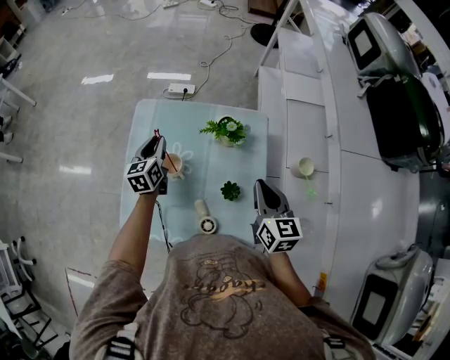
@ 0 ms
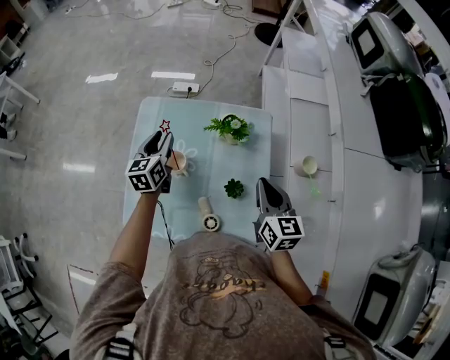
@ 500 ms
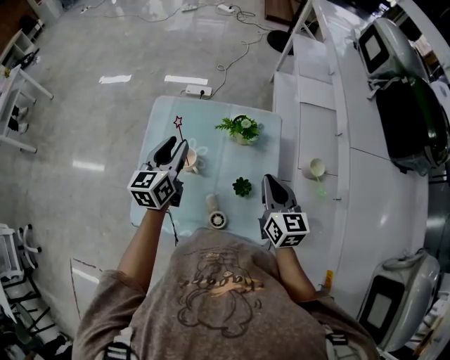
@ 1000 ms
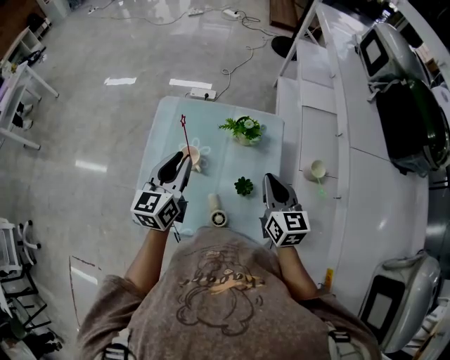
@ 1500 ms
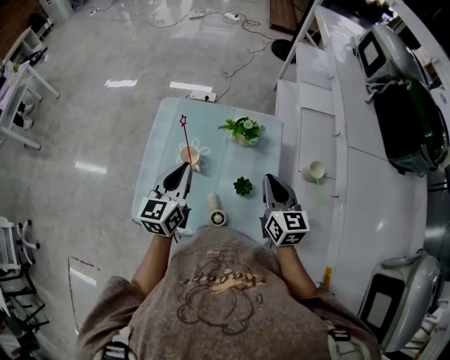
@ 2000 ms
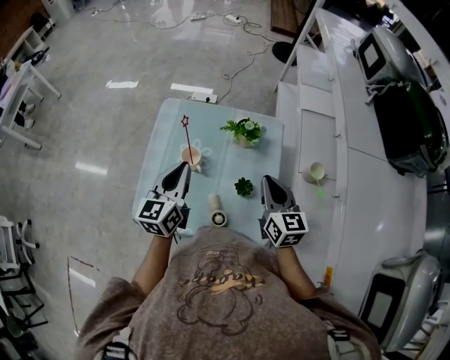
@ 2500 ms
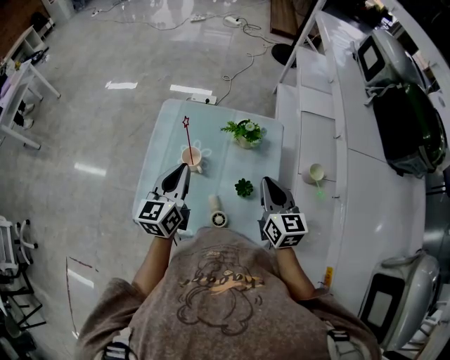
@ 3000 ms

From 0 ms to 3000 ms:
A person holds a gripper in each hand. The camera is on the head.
From 0 ms to 1500 ms: The left gripper travels backward and upward by roughly 20 cm.
From 1500 ms to 3000 ms: The left gripper closes its fingers.

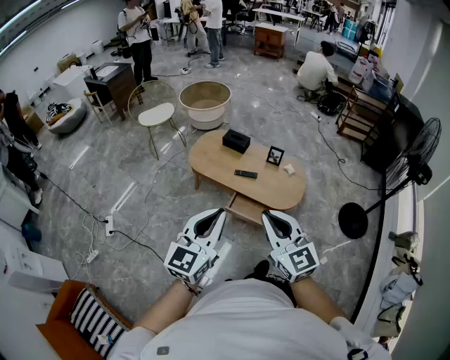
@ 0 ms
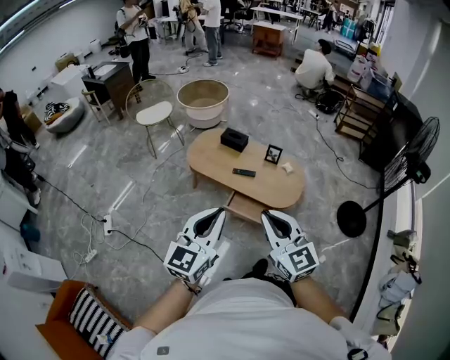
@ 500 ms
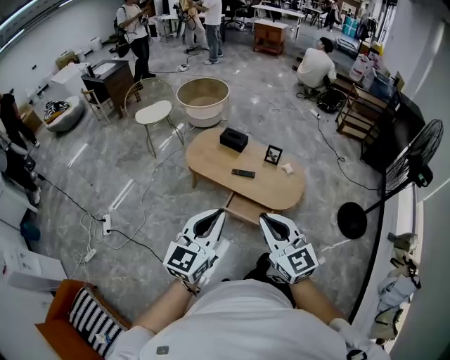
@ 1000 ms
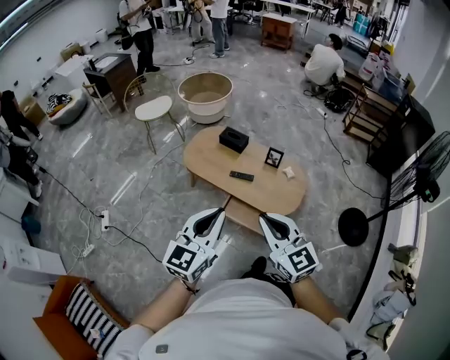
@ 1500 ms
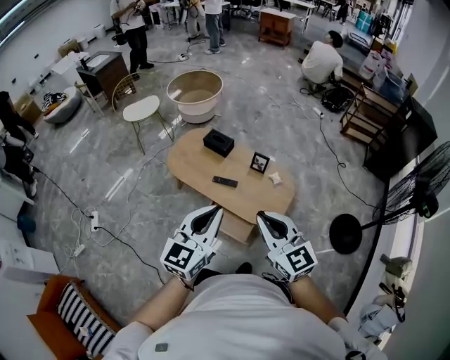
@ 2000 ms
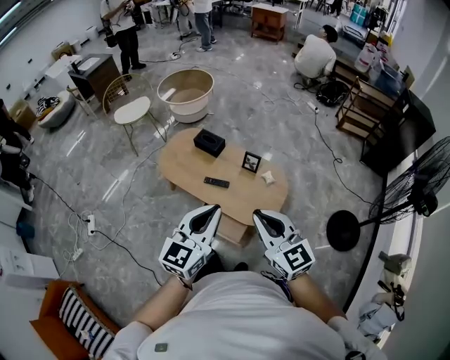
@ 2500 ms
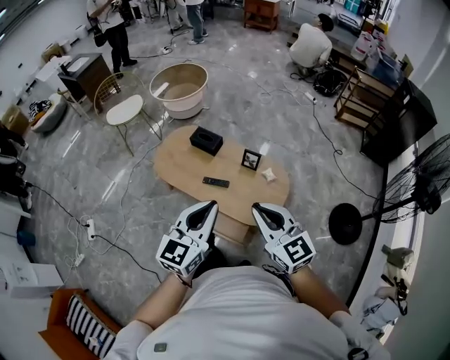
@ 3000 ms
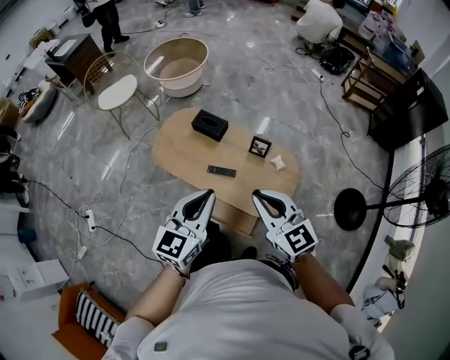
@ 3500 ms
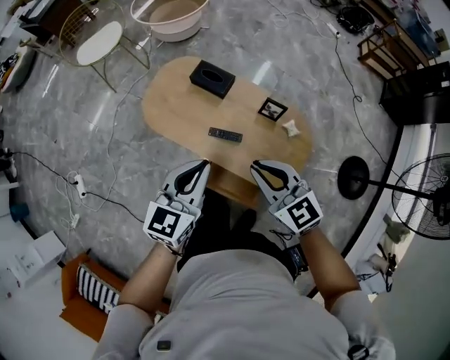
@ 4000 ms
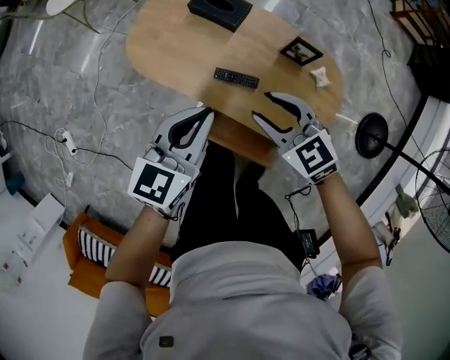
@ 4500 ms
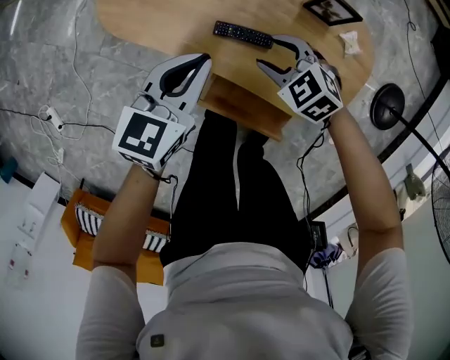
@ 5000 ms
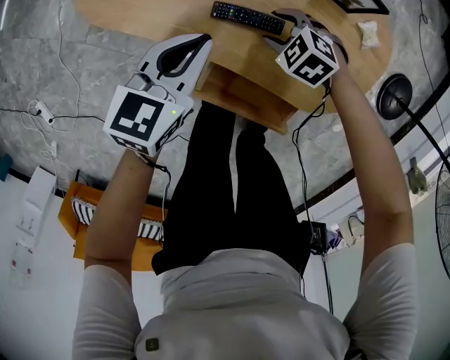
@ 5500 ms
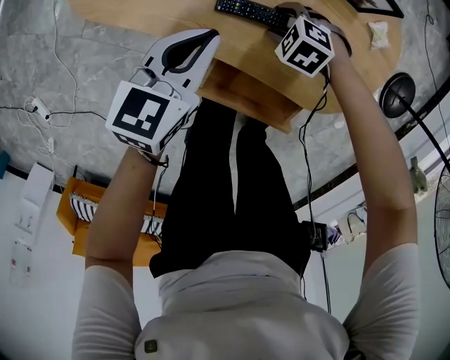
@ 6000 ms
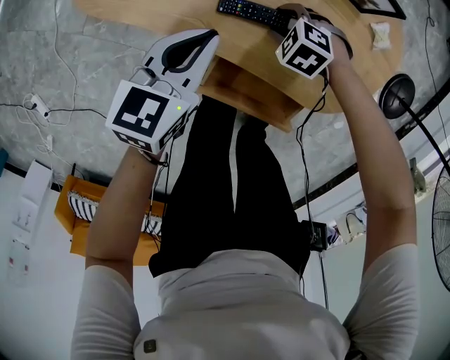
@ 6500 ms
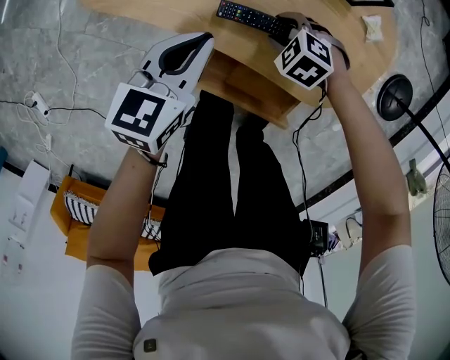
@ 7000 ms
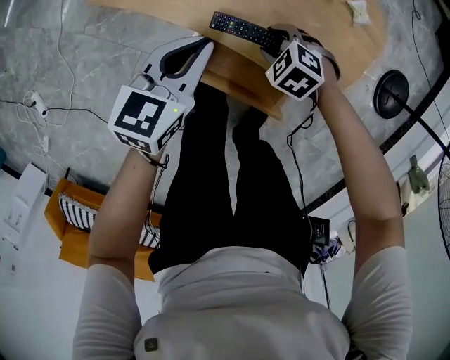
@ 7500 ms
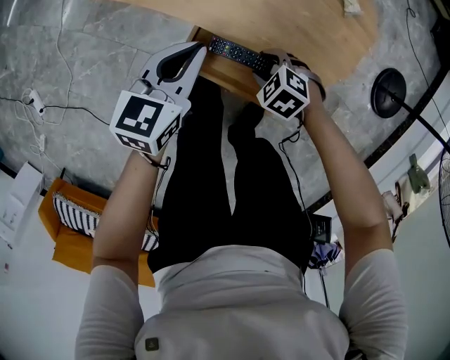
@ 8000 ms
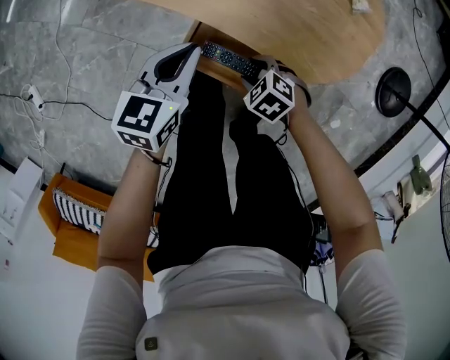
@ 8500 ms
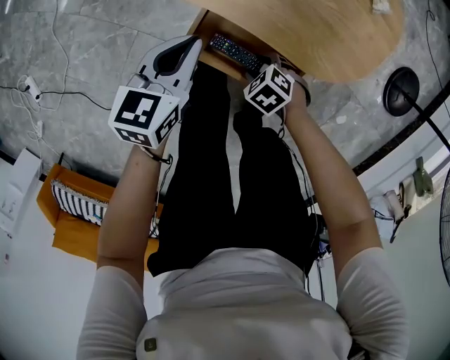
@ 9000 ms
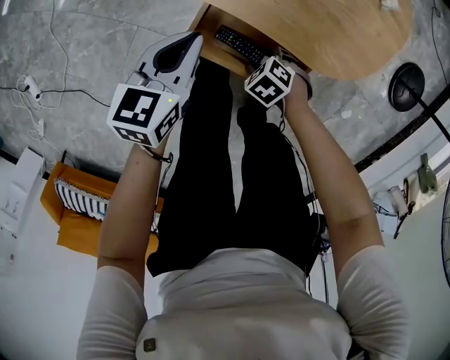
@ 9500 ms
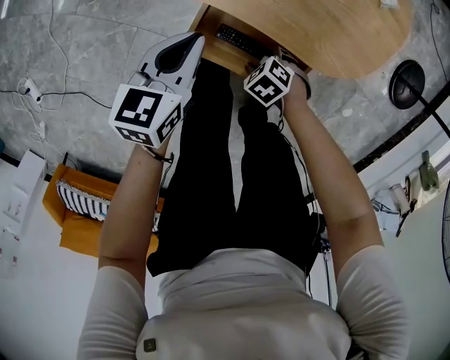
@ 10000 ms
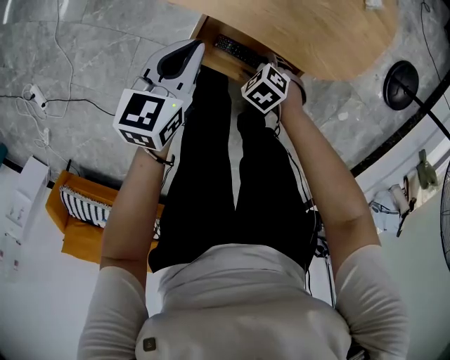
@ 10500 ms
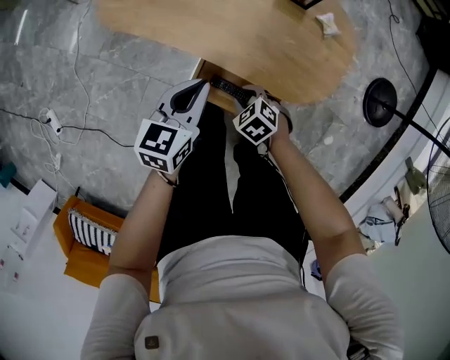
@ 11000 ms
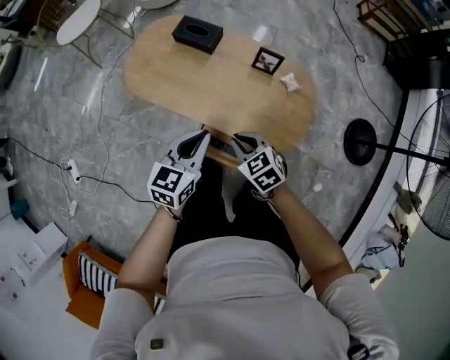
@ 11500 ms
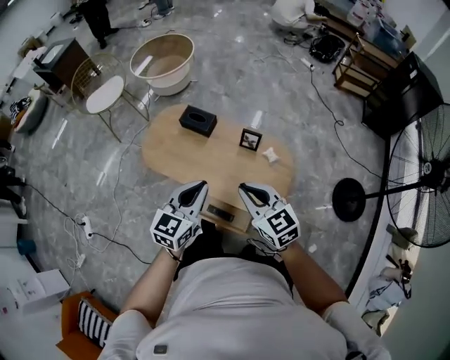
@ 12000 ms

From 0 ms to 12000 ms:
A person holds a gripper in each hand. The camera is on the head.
From 0 ms to 2000 ms: The grippers both shift forward and to the right by roughly 25 cm.
From 2000 ms to 4000 ms: The two grippers go approximately 35 cm forward and downward. The right gripper changes its angle by about 20 degrees.
From 4000 ms to 6000 ms: The two grippers go about 50 cm downward. The left gripper rotates roughly 20 degrees; the right gripper angles its fingers downward, by roughly 50 degrees, and opens its fingers.
From 6000 ms to 8000 ms: The left gripper shifts by some 15 cm. The right gripper shifts by approximately 20 cm.
From 8000 ms to 10000 ms: The grippers both shift downward by about 10 cm.
From 10000 ms to 12000 ms: The two grippers go roughly 60 cm upward. The right gripper angles its fingers upward, by approximately 60 degrees, and closes its fingers; the left gripper changes its angle by approximately 30 degrees.

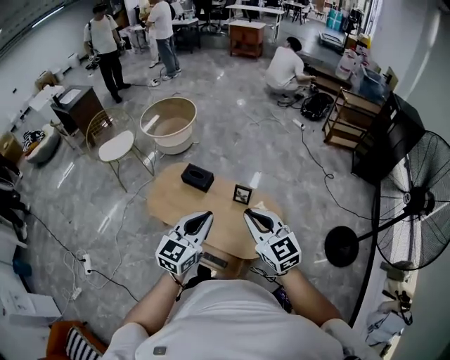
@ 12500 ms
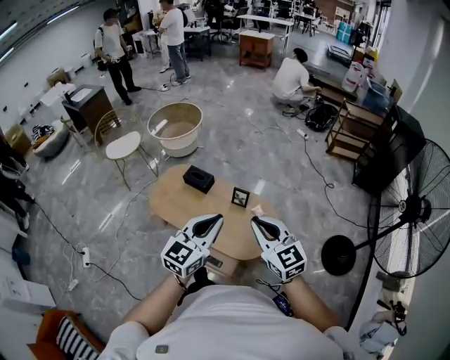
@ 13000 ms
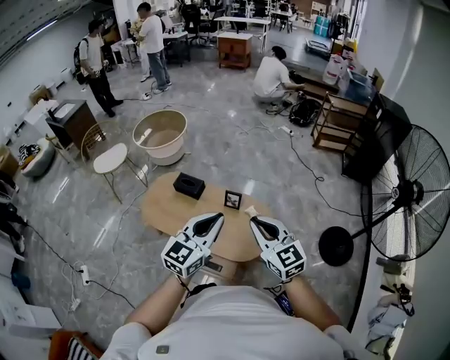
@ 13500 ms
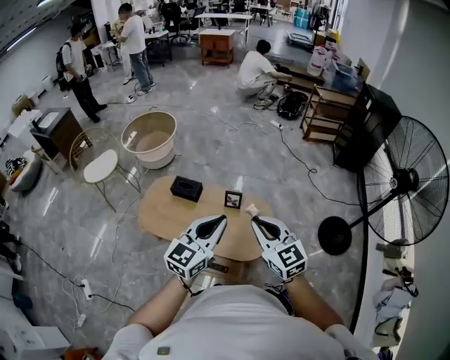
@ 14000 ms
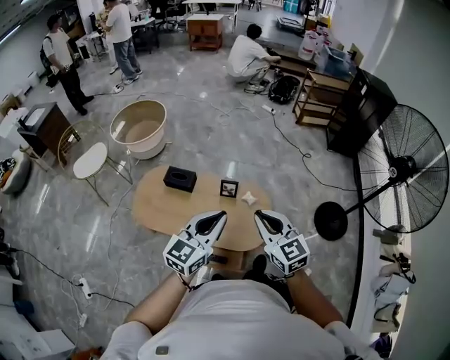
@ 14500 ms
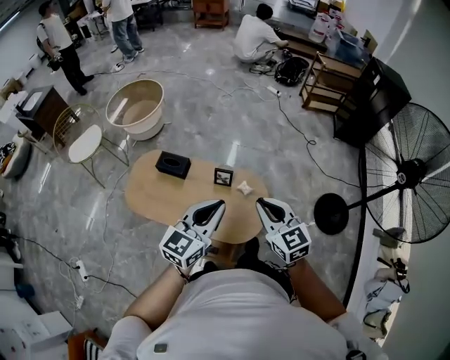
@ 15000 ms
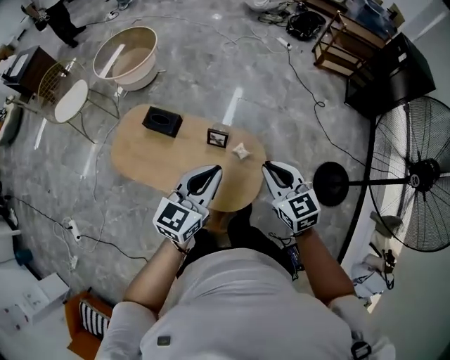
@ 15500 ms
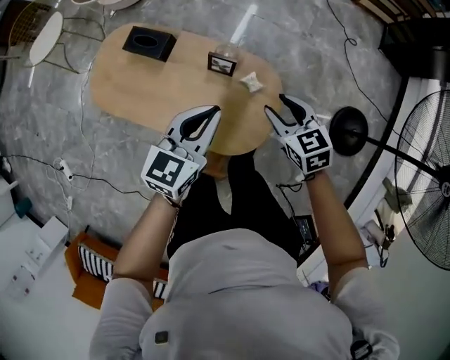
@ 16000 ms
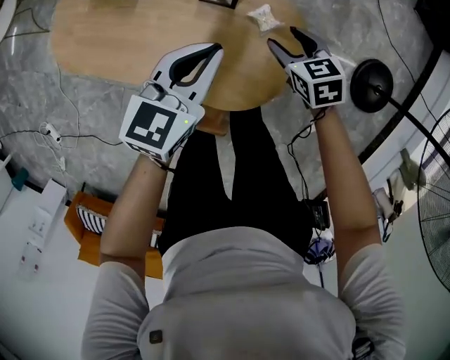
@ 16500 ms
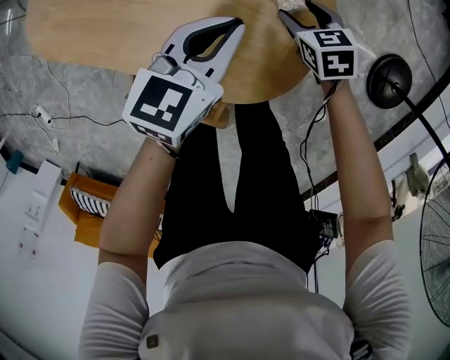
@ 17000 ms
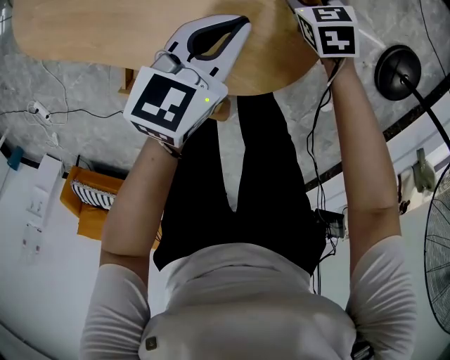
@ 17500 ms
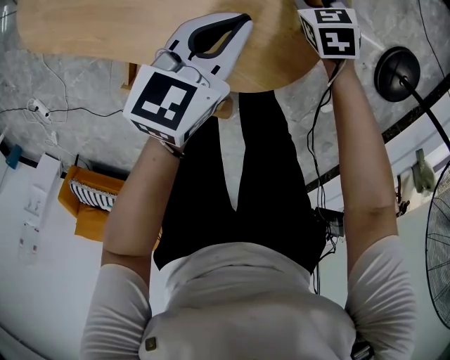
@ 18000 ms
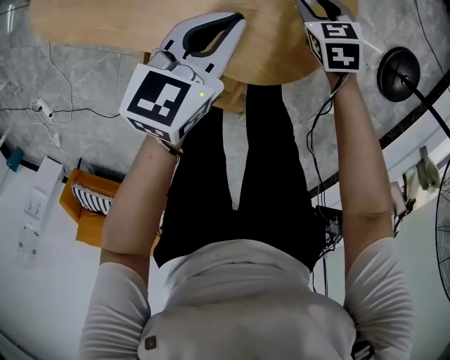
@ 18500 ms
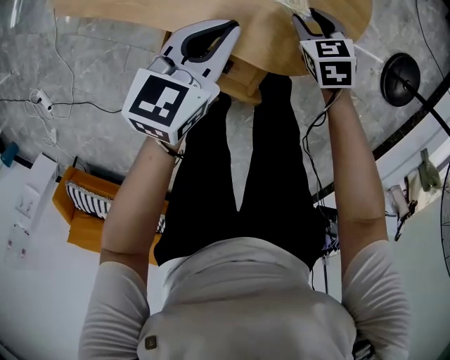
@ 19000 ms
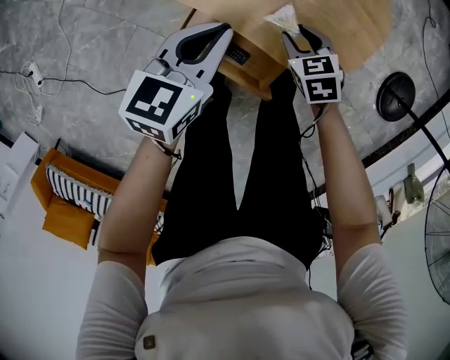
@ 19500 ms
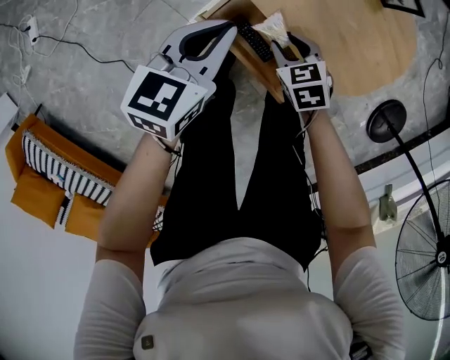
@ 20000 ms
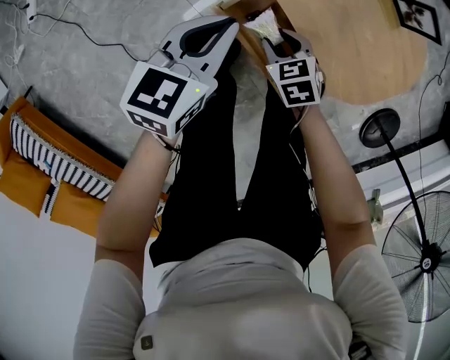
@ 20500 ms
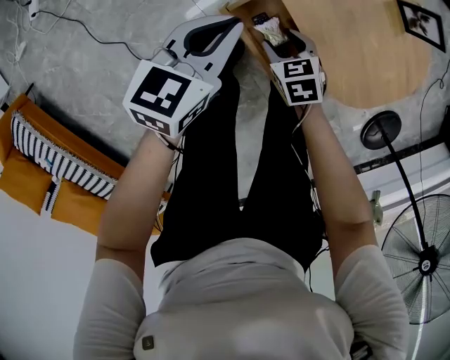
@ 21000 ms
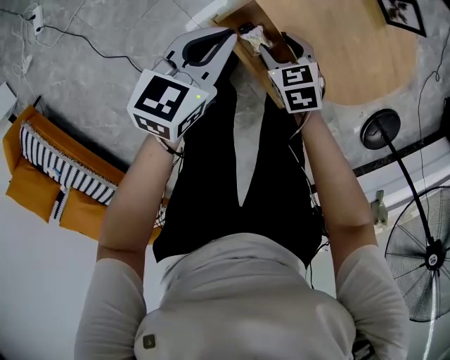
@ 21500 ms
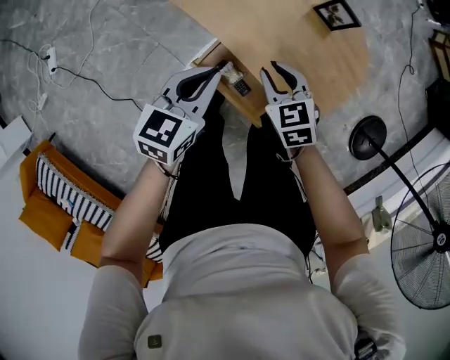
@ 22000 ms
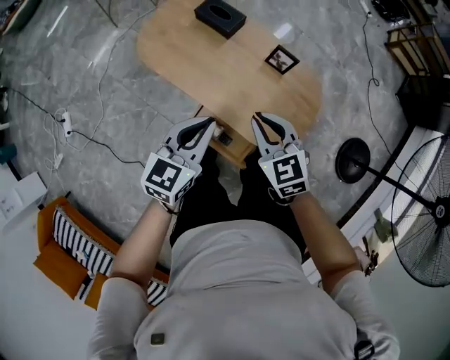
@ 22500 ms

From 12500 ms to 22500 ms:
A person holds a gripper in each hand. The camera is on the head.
From 14500 ms to 16500 ms: The two grippers go roughly 50 cm downward and forward. The right gripper tilts its fingers roughly 40 degrees downward, and opens, while the left gripper rotates roughly 30 degrees.
From 16500 ms to 18500 ms: The right gripper goes approximately 10 cm downward. The left gripper is displaced downward and backward by about 10 cm.
From 18500 ms to 20500 ms: The left gripper ends up roughly 35 cm from where it was, and swivels approximately 30 degrees; the right gripper shifts by roughly 40 cm, and rotates about 30 degrees.
From 20500 ms to 22500 ms: The right gripper is displaced upward by some 40 cm, changes its angle by roughly 30 degrees, and closes. Meanwhile the left gripper is displaced upward and to the right by some 30 cm, and rotates about 20 degrees.

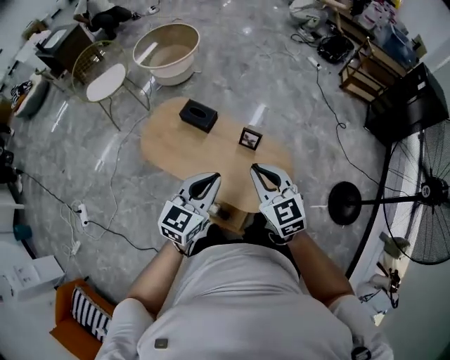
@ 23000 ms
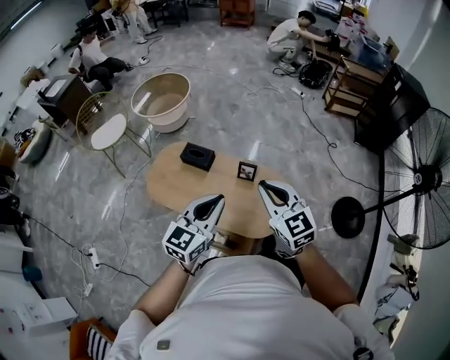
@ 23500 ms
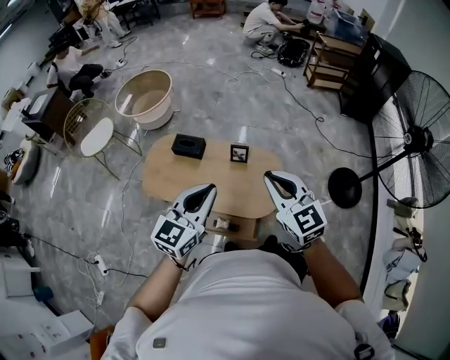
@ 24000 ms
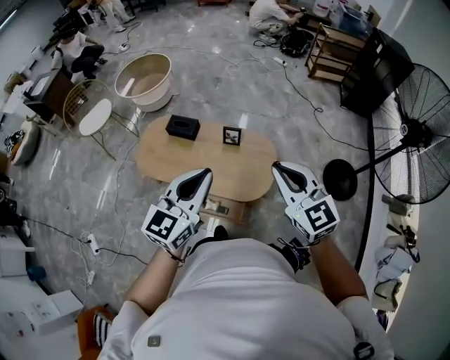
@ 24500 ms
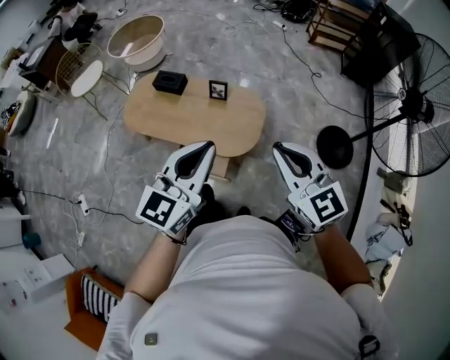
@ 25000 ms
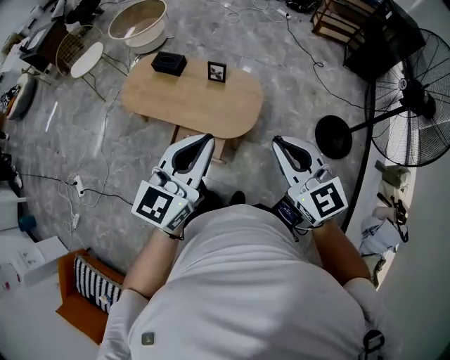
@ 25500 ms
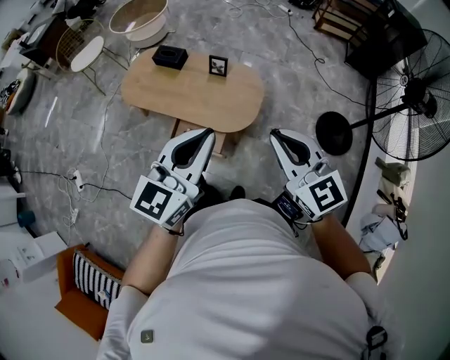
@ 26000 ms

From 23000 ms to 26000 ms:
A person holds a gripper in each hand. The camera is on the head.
From 23000 ms to 24500 ms: The left gripper heads upward and backward, covering some 20 cm, while the right gripper moves backward, upward and to the right, about 25 cm.
From 24500 ms to 26000 ms: Both grippers travel together backward and to the right, about 20 cm.
